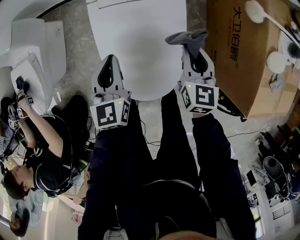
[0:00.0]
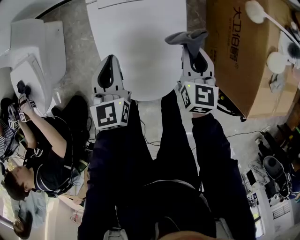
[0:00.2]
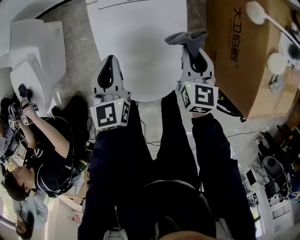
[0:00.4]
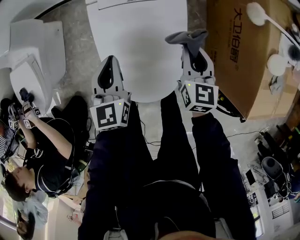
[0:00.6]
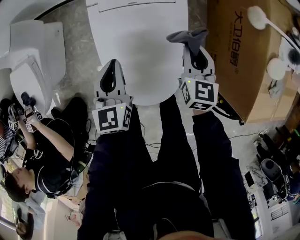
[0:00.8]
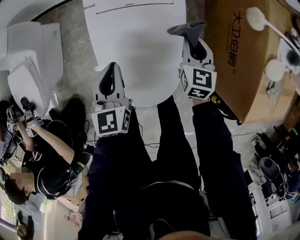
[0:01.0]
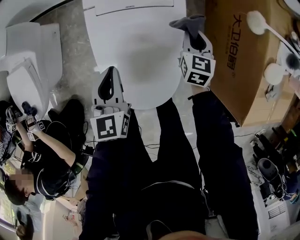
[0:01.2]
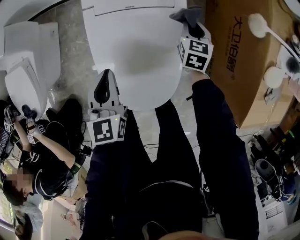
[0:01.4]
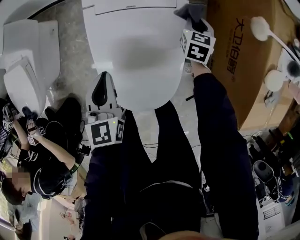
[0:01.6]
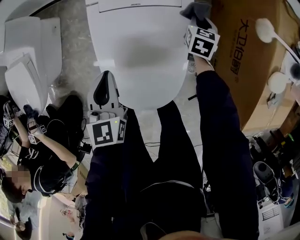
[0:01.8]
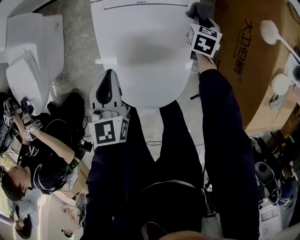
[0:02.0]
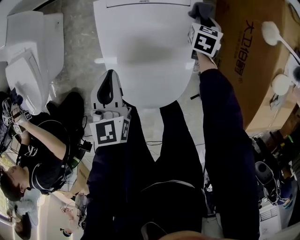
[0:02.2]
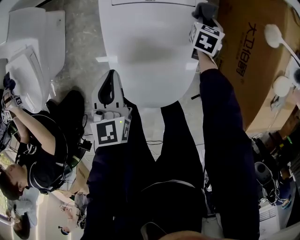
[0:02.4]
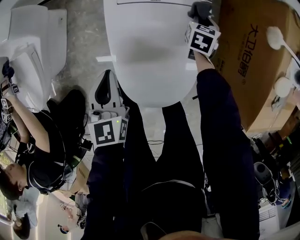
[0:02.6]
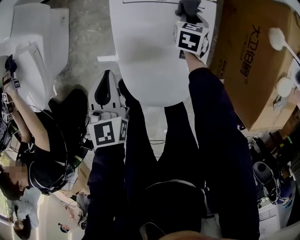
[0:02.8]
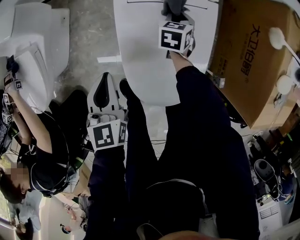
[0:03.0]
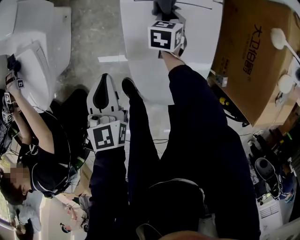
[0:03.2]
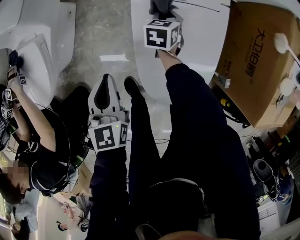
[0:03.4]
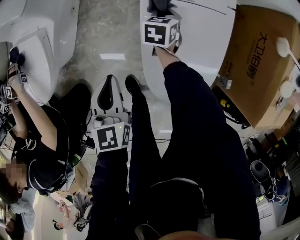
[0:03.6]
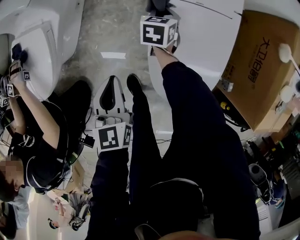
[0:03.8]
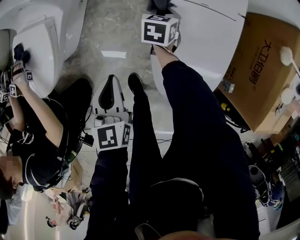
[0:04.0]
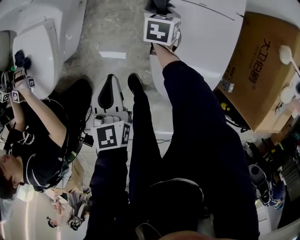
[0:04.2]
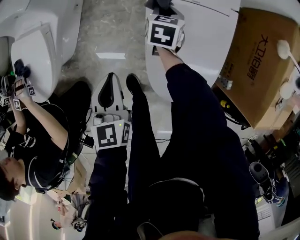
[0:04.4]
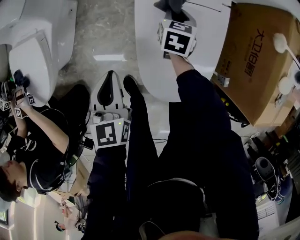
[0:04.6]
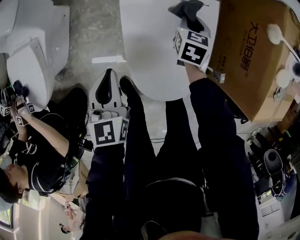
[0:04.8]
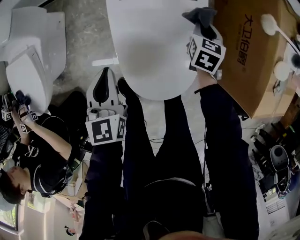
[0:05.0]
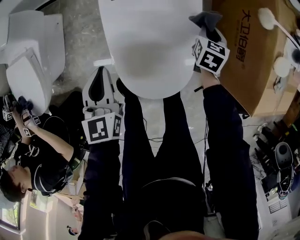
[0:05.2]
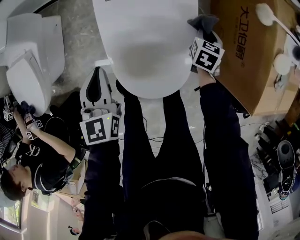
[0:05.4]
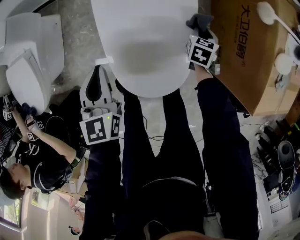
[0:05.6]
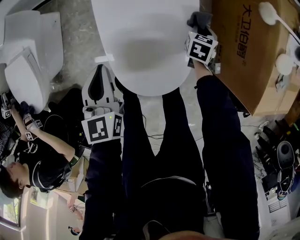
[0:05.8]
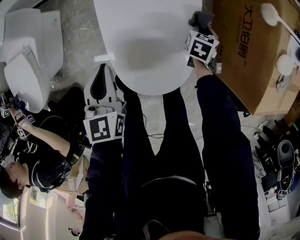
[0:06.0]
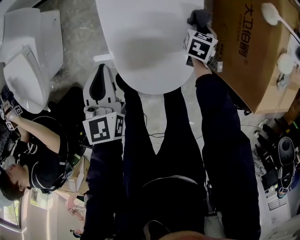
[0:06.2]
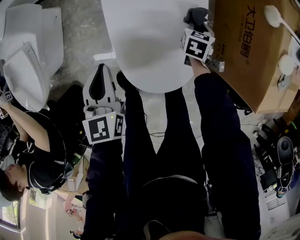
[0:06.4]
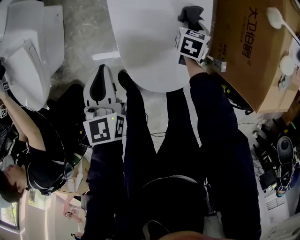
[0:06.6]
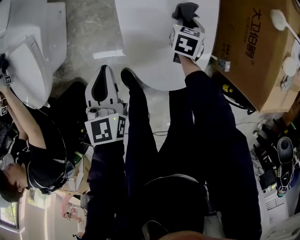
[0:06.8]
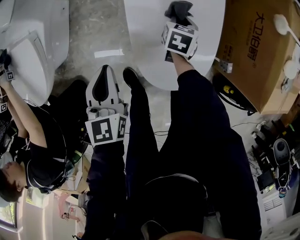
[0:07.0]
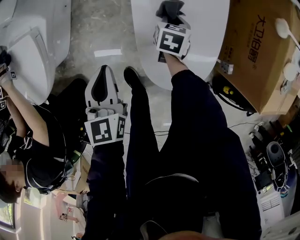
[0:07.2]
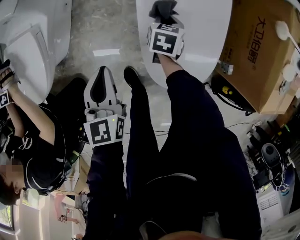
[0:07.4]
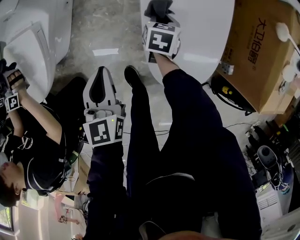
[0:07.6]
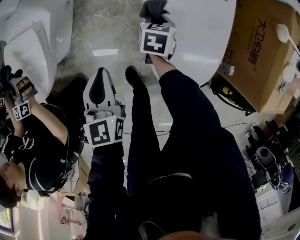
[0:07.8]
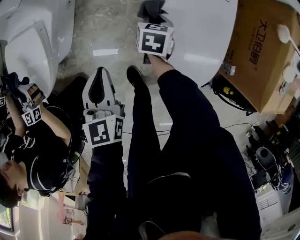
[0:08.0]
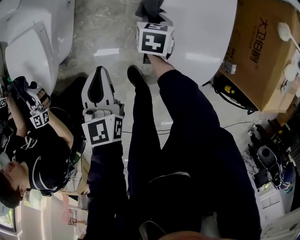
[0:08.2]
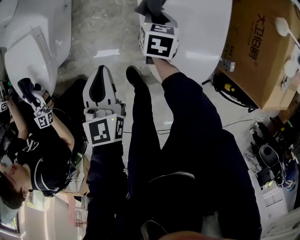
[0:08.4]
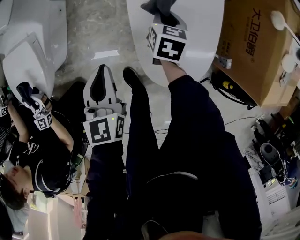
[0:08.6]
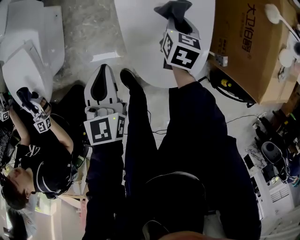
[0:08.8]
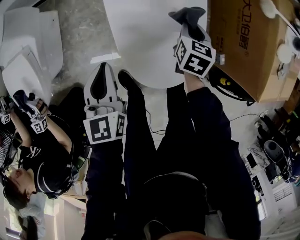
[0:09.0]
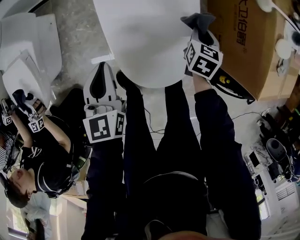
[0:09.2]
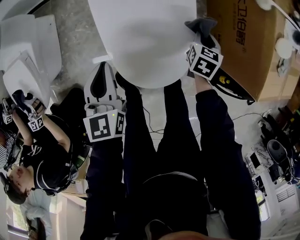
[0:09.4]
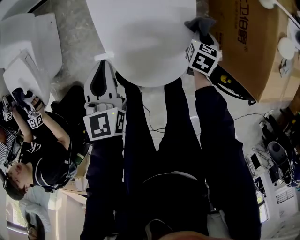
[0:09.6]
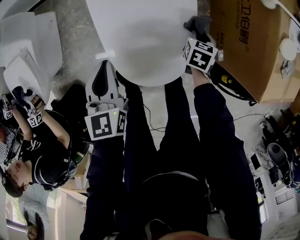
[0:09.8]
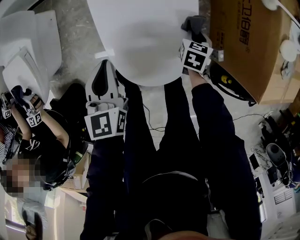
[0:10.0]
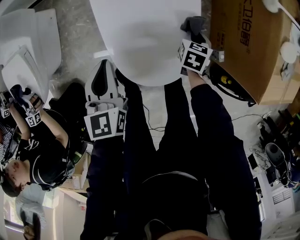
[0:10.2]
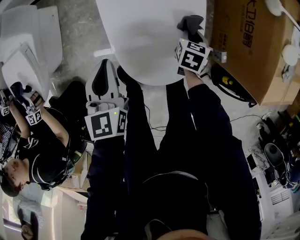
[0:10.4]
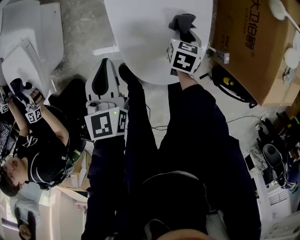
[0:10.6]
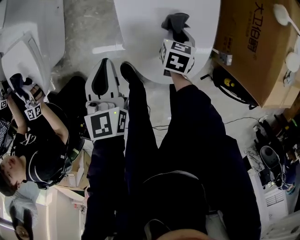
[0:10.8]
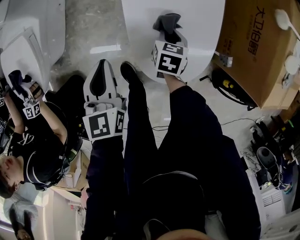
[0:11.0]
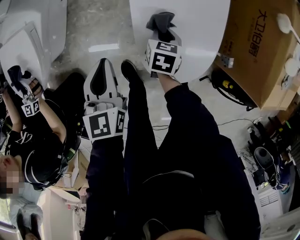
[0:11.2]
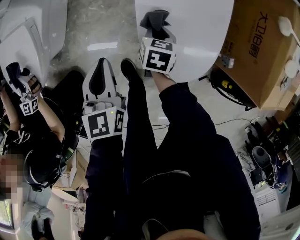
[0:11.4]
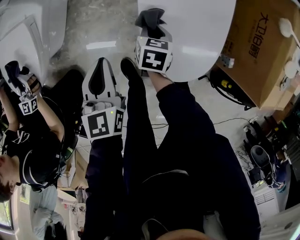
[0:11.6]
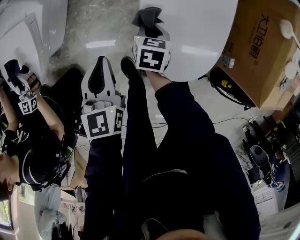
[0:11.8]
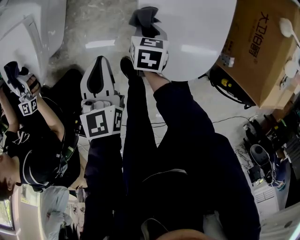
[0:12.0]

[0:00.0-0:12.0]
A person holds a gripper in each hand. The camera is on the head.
0:00.0 to 0:01.6: The right gripper travels forward and downward by about 20 cm.
0:01.6 to 0:03.0: The right gripper heads to the left, covering some 20 cm, while the left gripper moves to the left, some 10 cm.
0:03.0 to 0:04.4: The left gripper shifts about 10 cm to the left, while the right gripper heads to the left, covering roughly 15 cm.
0:04.4 to 0:06.0: The right gripper travels to the right by some 35 cm; the left gripper goes about 15 cm to the right.
0:06.0 to 0:07.6: The left gripper heads to the left and backward, covering roughly 15 cm. Meanwhile the right gripper goes approximately 30 cm to the left.
0:07.6 to 0:09.0: The right gripper heads to the right, covering approximately 20 cm. The left gripper shifts roughly 10 cm to the right.
0:09.0 to 0:10.4: The right gripper heads downward and to the right, covering some 10 cm.
0:10.4 to 0:12.0: The right gripper travels to the left by approximately 30 cm. Meanwhile the left gripper travels to the left by approximately 15 cm.

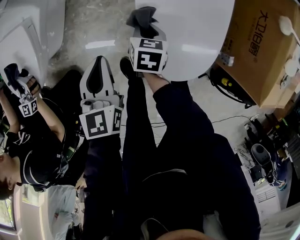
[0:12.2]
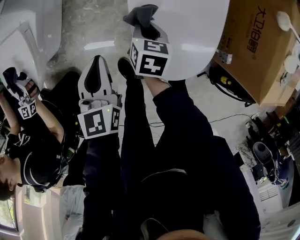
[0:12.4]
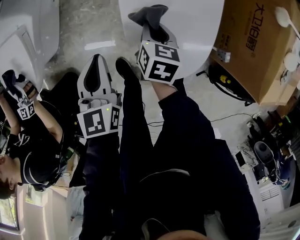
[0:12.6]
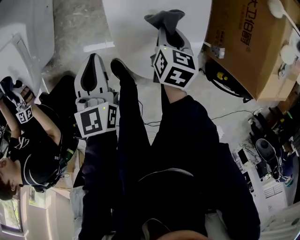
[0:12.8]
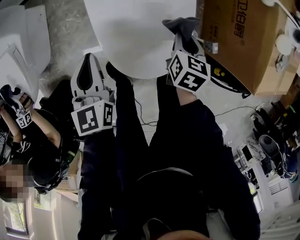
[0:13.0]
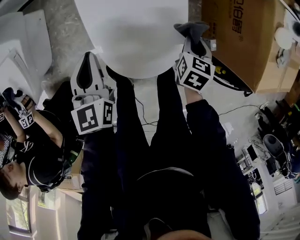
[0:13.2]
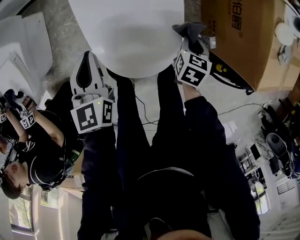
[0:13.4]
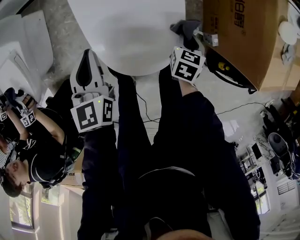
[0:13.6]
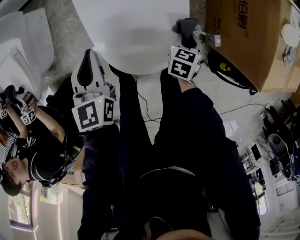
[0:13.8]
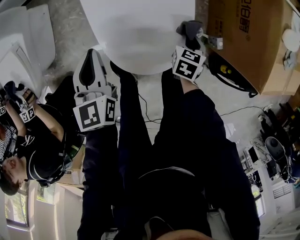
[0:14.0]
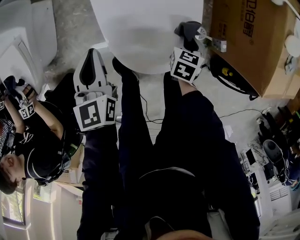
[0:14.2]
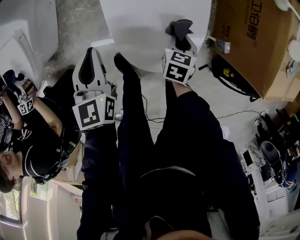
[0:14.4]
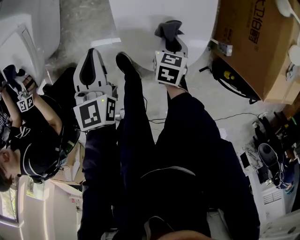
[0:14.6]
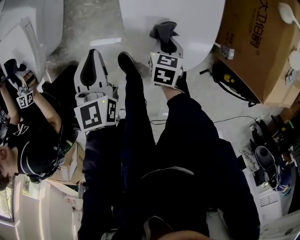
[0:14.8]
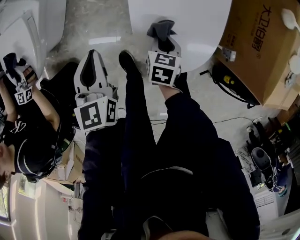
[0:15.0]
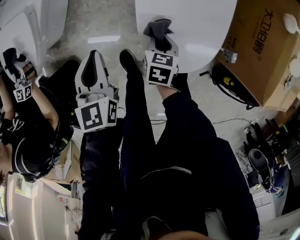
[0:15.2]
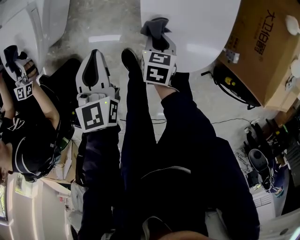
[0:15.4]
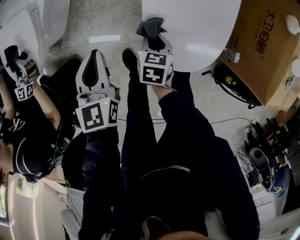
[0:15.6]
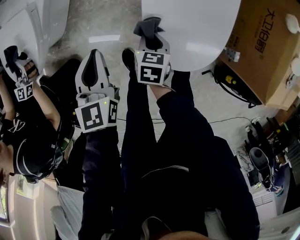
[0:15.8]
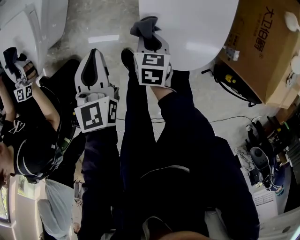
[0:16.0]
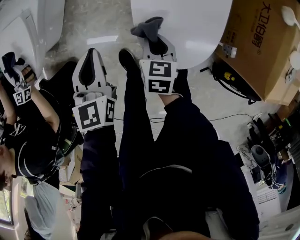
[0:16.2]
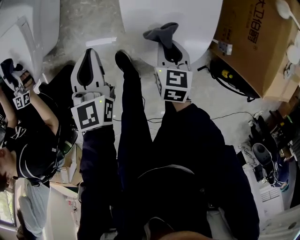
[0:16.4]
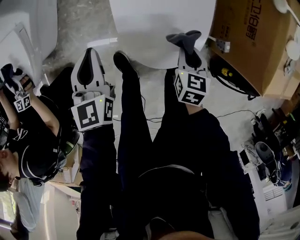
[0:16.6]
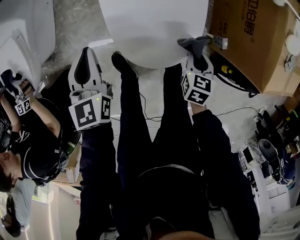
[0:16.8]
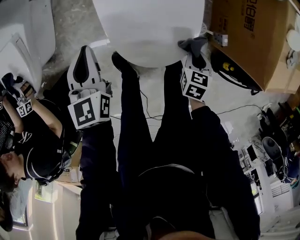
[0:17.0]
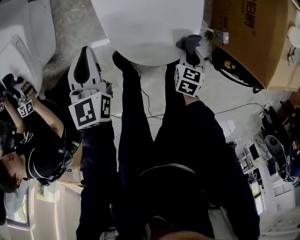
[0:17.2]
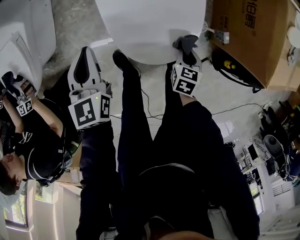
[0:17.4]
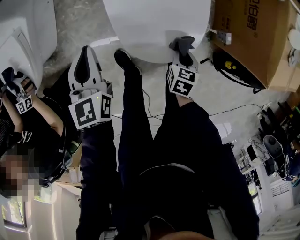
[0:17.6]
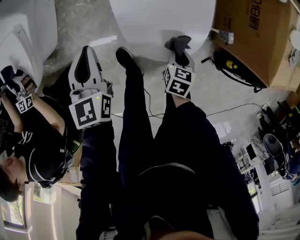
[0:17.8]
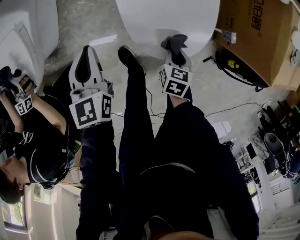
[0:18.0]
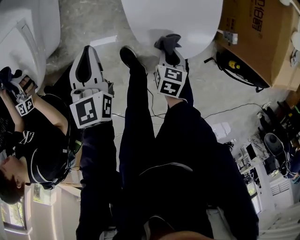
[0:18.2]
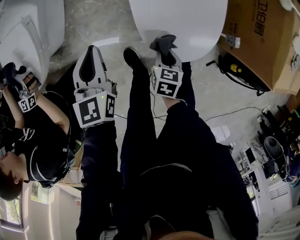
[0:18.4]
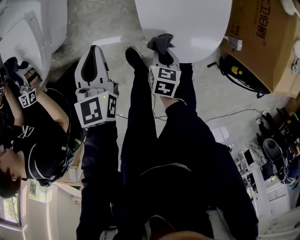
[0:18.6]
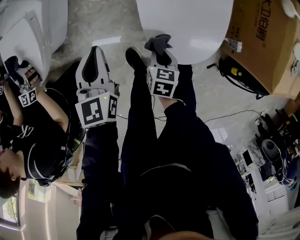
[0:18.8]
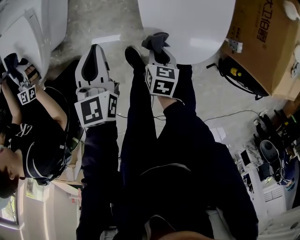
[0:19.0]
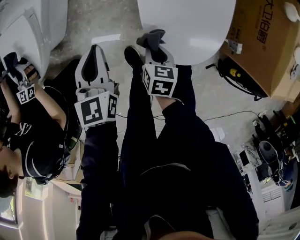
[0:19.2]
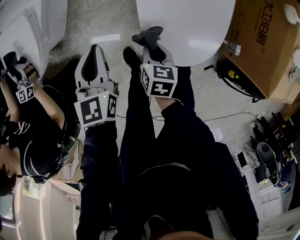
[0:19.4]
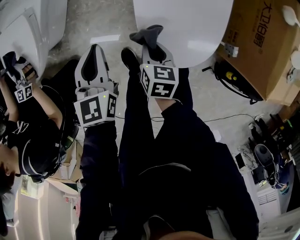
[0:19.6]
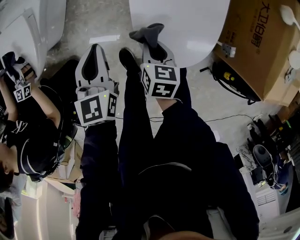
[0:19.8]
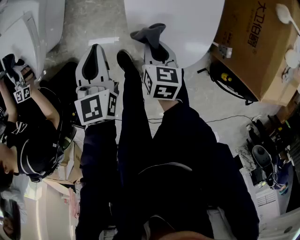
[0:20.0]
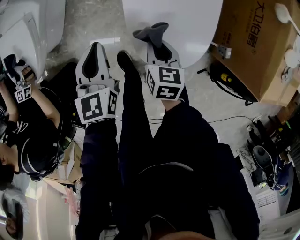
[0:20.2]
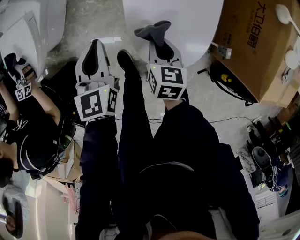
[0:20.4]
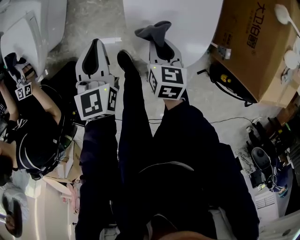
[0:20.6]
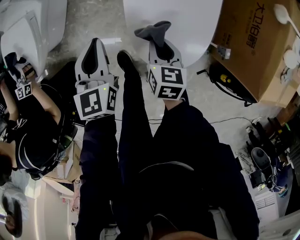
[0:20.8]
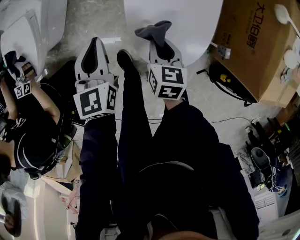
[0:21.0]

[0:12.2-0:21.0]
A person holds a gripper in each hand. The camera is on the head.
0:12.2 to 0:13.6: The left gripper goes about 15 cm to the right. Meanwhile the right gripper moves to the right, roughly 35 cm, and turns by some 20 degrees.
0:13.6 to 0:15.2: The right gripper goes about 30 cm to the left. The left gripper heads to the left and backward, covering some 20 cm.
0:15.2 to 0:16.6: The left gripper is displaced to the right by about 5 cm; the right gripper heads to the right and upward, covering some 15 cm.
0:16.6 to 0:18.0: The right gripper moves downward and backward, about 10 cm, and goes to the right and returns, about 10 cm each way.
0:18.0 to 0:19.6: The right gripper is displaced to the left and forward by some 15 cm.
0:19.6 to 0:21.0: The right gripper goes some 5 cm to the right.

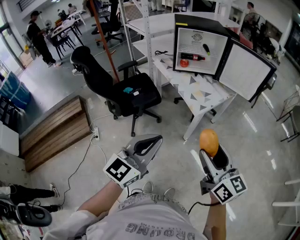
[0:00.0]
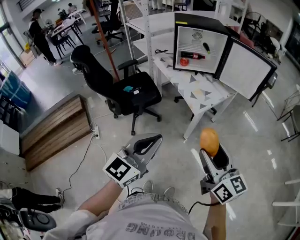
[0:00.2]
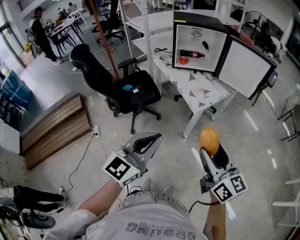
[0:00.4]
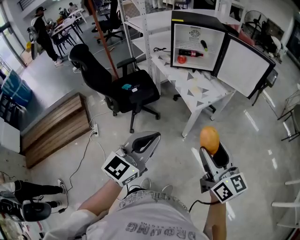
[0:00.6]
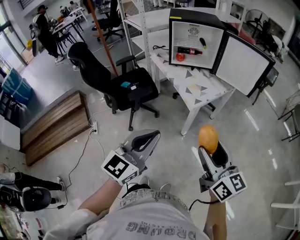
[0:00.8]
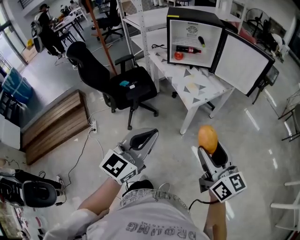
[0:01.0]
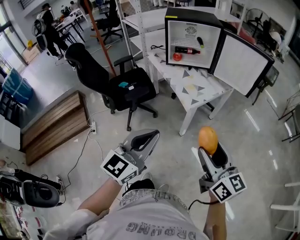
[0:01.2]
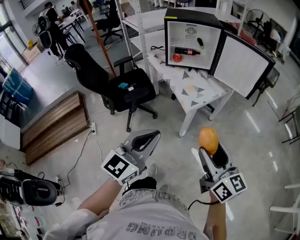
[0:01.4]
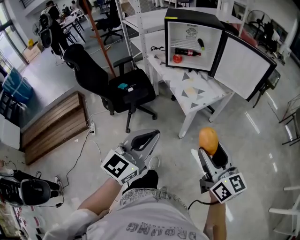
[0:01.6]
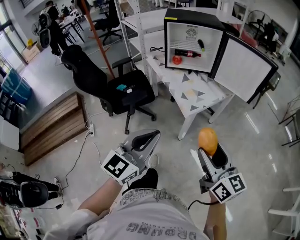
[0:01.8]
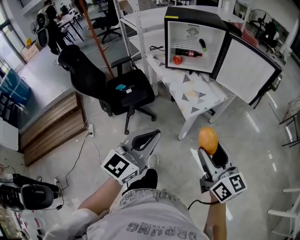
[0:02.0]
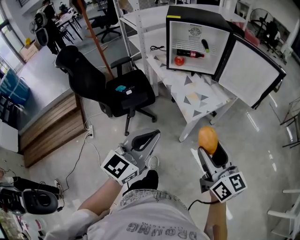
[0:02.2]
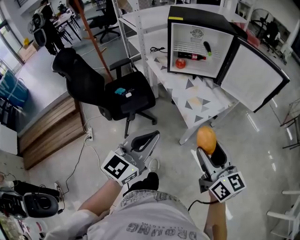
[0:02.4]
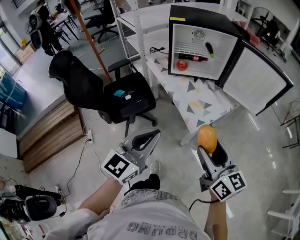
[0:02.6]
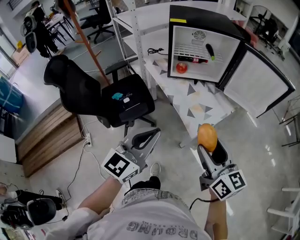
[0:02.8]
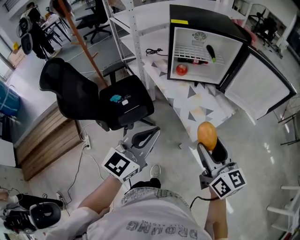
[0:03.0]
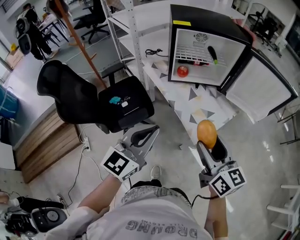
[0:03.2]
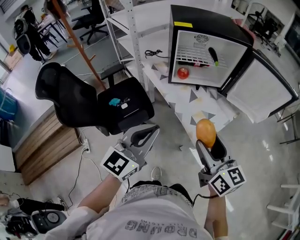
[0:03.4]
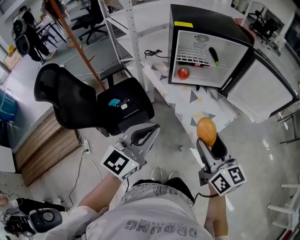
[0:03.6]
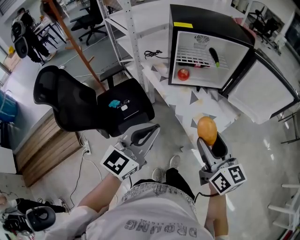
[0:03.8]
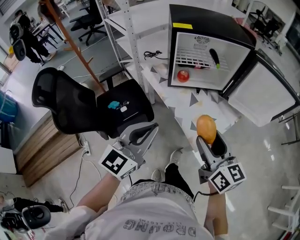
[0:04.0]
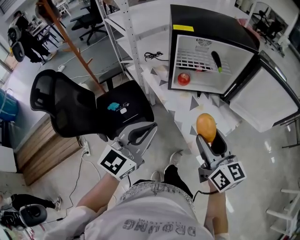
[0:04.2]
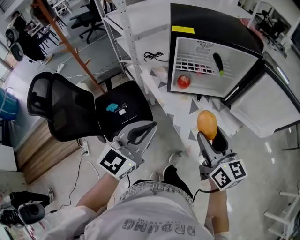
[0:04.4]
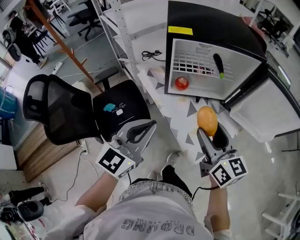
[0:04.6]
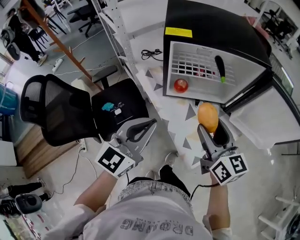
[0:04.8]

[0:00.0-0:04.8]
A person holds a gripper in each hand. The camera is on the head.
0:00.0 to 0:01.6: Both grippers move to the right, about 10 cm.
0:01.6 to 0:03.2: Both grippers travel together forward and to the left, approximately 30 cm.
0:03.2 to 0:04.8: The grippers both shift forward by approximately 25 cm.
